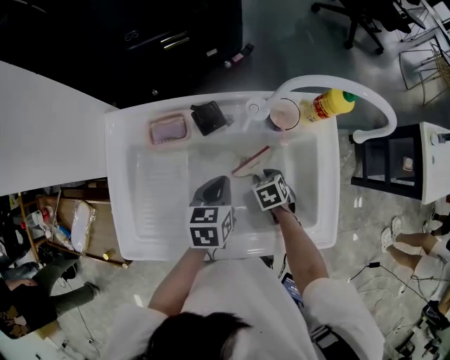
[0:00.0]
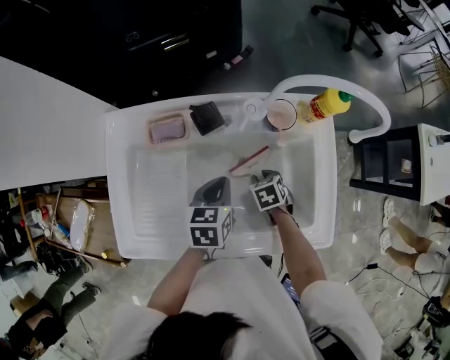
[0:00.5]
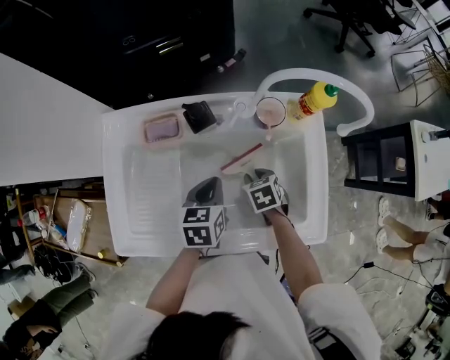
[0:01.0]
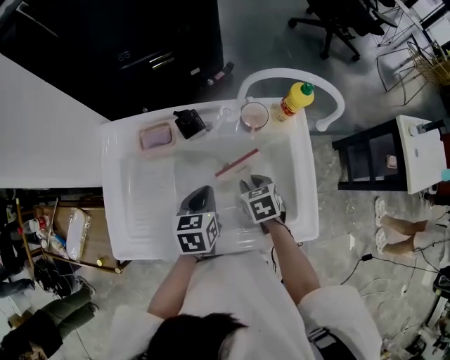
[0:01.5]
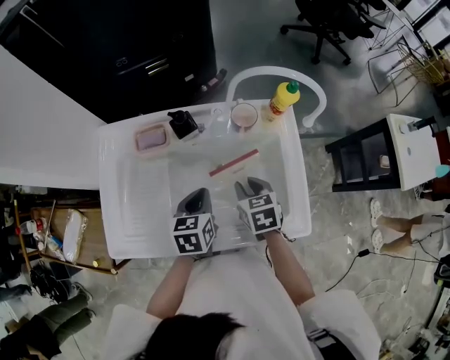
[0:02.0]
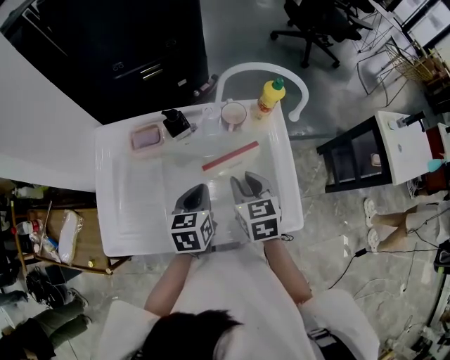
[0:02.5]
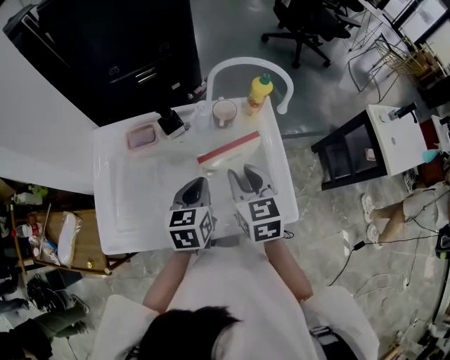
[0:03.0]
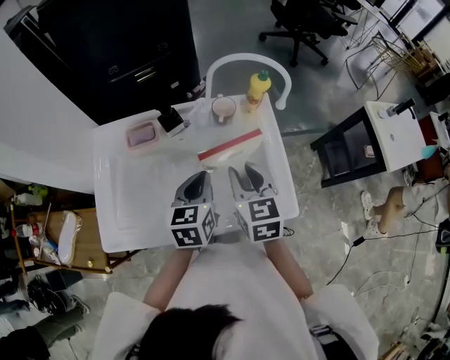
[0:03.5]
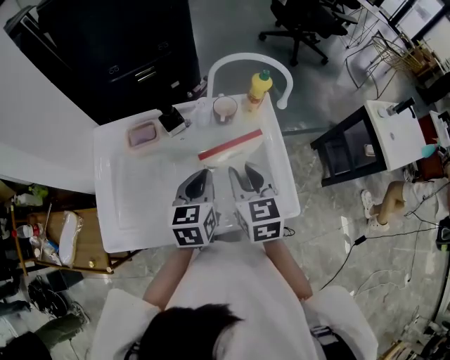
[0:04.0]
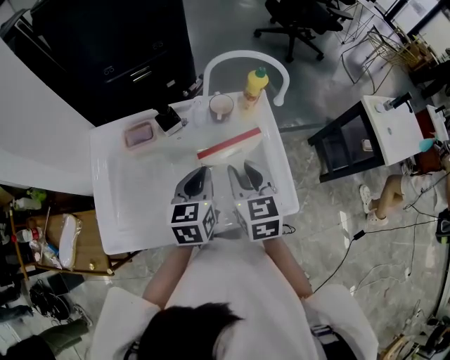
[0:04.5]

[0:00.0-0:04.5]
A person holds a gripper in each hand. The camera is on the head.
0:00.0 to 0:02.0: The right gripper shifts about 15 cm upward, and turns by roughly 20 degrees, while the left gripper changes place by roughly 5 cm.
0:02.0 to 0:04.5: The right gripper heads upward, covering approximately 15 cm, and changes its angle by approximately 20 degrees; the left gripper travels upward by some 10 cm.

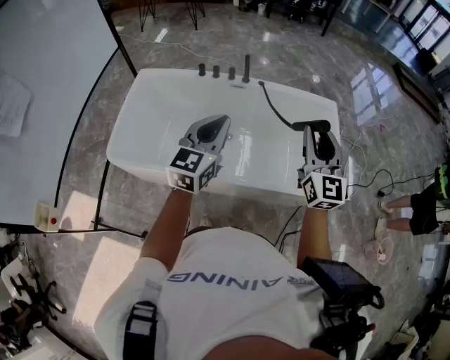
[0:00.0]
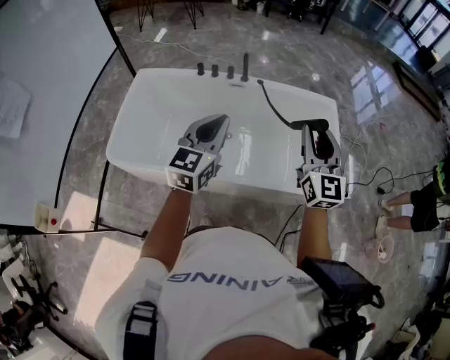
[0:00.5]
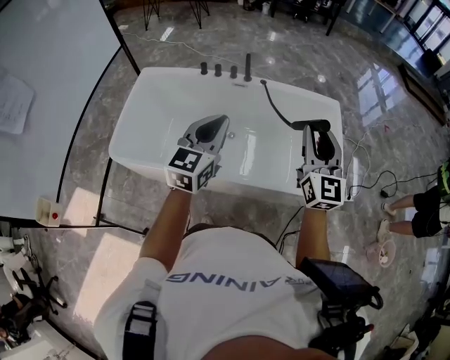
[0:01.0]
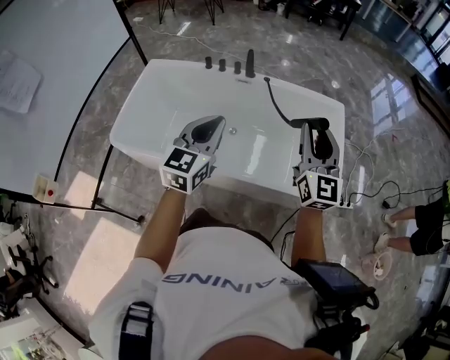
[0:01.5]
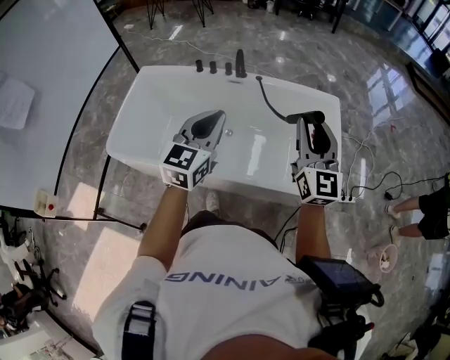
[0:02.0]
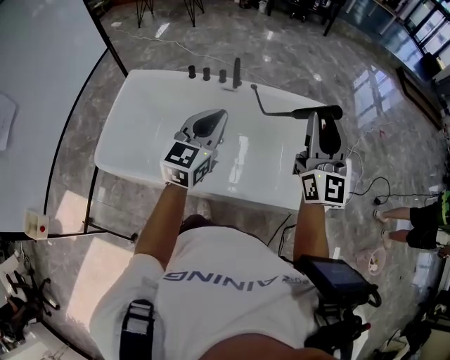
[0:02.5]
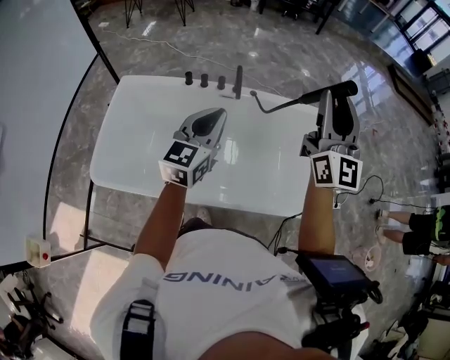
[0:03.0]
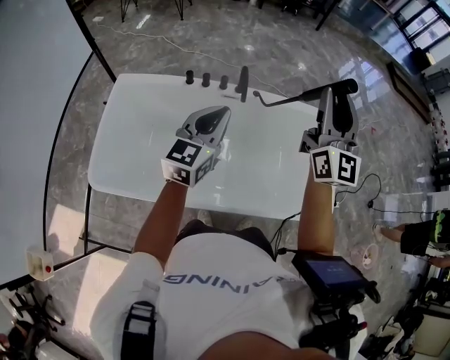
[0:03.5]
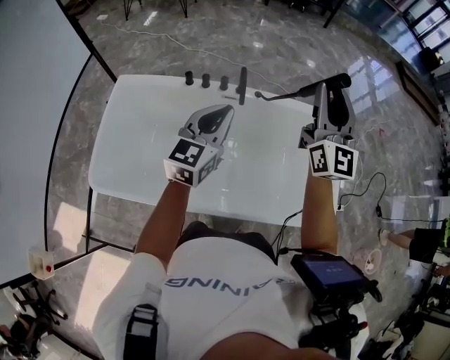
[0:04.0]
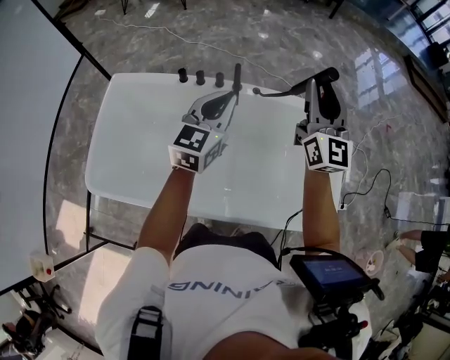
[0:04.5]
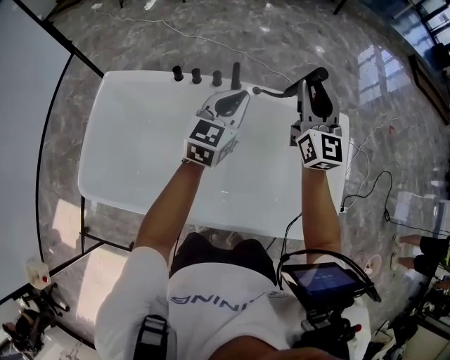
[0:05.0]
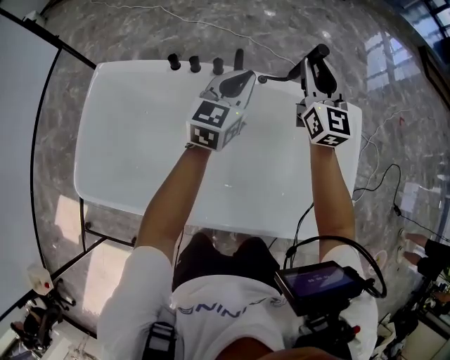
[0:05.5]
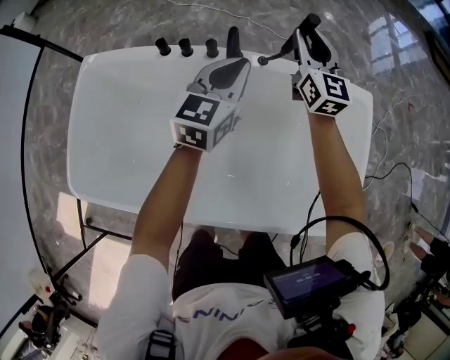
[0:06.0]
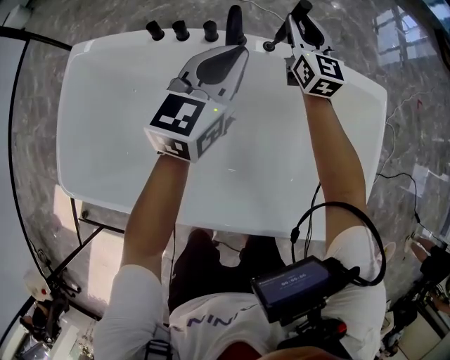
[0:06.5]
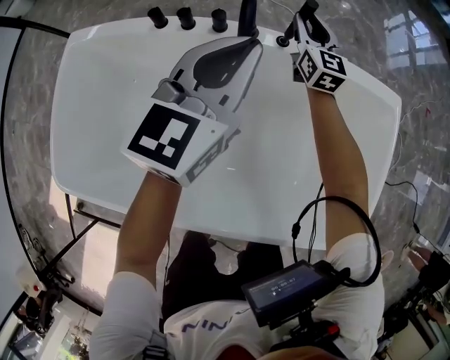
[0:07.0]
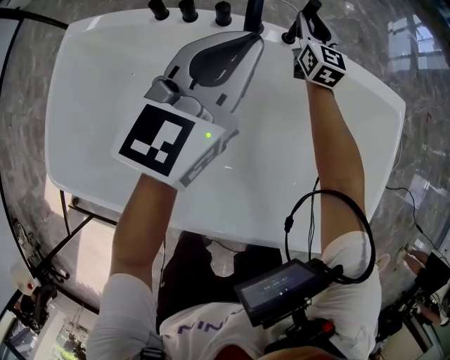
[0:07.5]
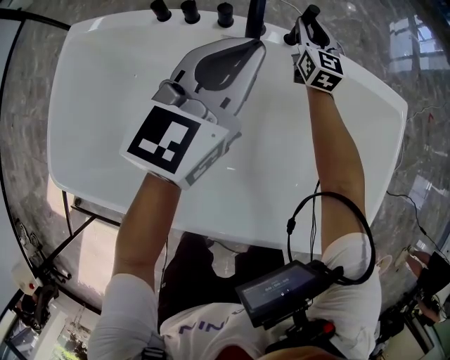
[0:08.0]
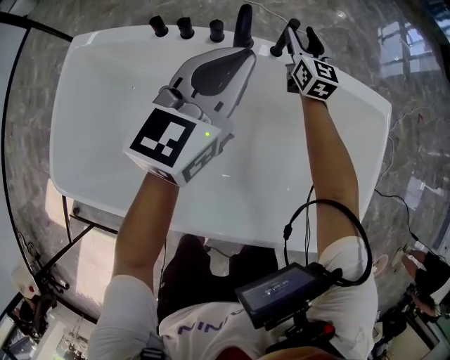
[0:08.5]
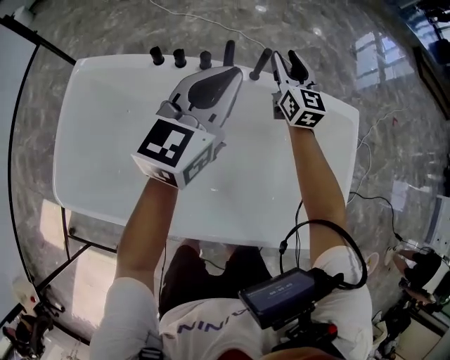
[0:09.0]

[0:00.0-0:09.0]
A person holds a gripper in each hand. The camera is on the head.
0:00.0 to 0:02.0: The grippers both shift to the right by approximately 10 cm.
0:02.0 to 0:04.5: Both grippers move forward, about 35 cm.
0:04.5 to 0:07.0: The right gripper travels downward and forward by some 50 cm, and swivels some 20 degrees; the left gripper travels downward and forward by approximately 25 cm.
0:07.0 to 0:09.0: The right gripper heads upward and backward, covering some 15 cm, while the left gripper moves upward, roughly 10 cm.

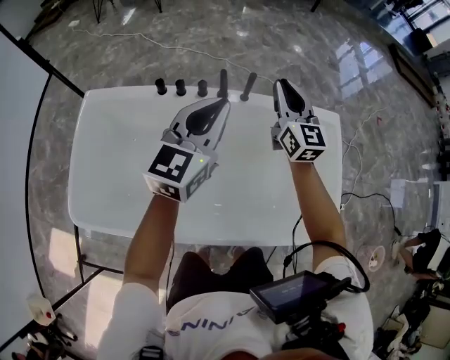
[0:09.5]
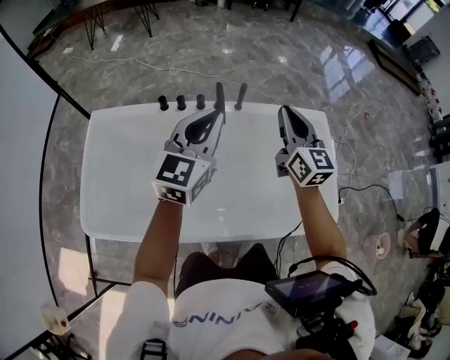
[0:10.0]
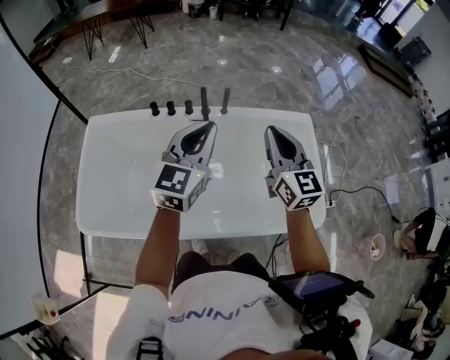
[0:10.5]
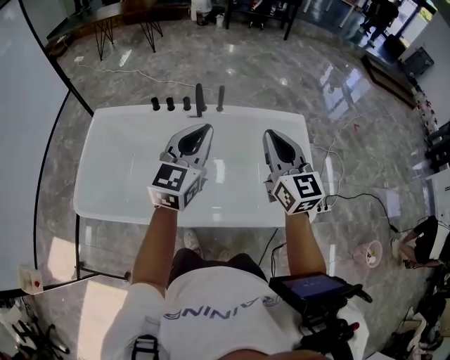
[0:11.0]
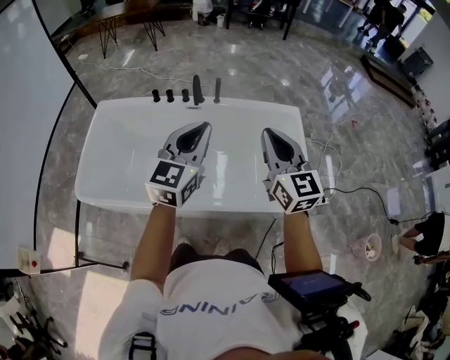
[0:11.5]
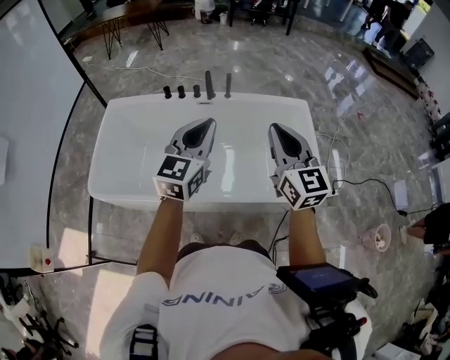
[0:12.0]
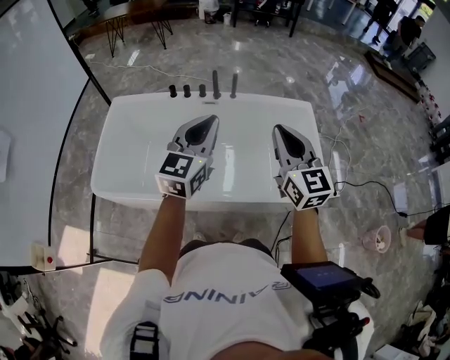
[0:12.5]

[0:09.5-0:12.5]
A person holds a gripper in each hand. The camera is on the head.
0:09.5 to 0:11.0: The left gripper travels backward, to the right and upward by roughly 25 cm. The right gripper shifts roughly 35 cm backward and upward.
0:11.0 to 0:12.5: Both grippers travel together backward, approximately 15 cm.

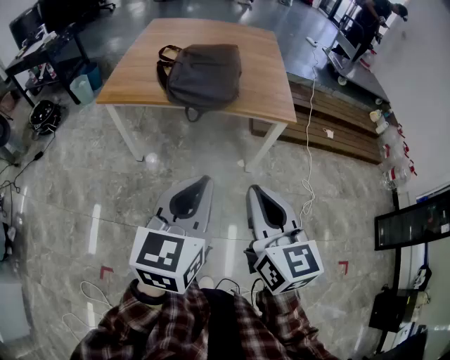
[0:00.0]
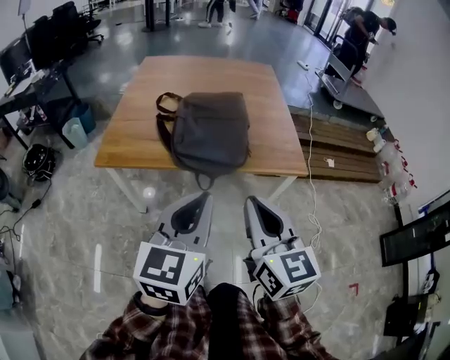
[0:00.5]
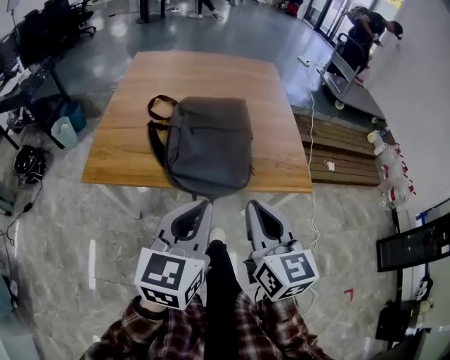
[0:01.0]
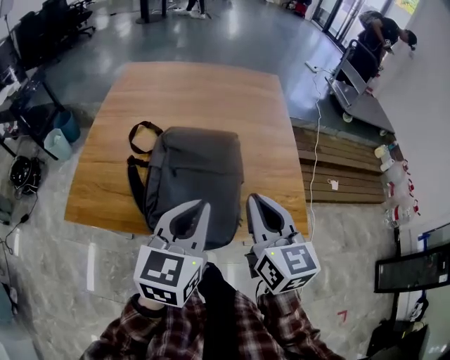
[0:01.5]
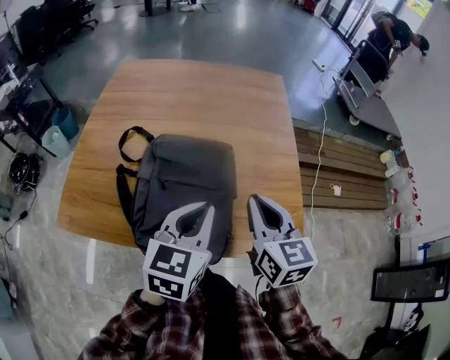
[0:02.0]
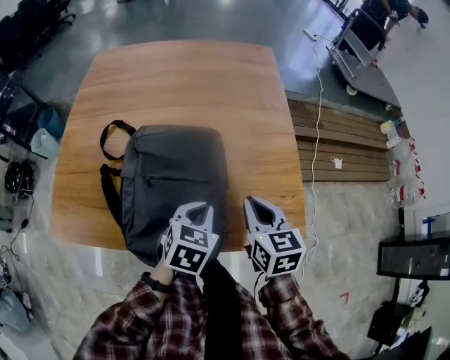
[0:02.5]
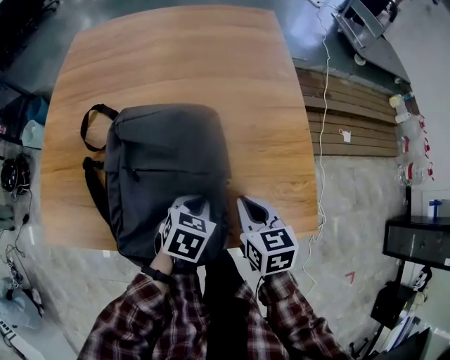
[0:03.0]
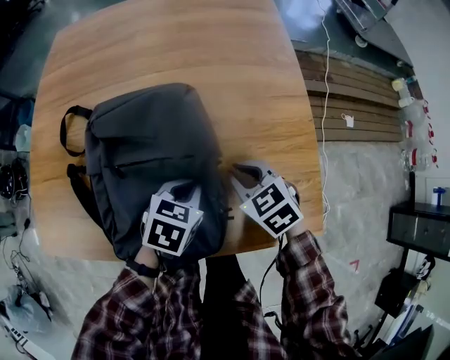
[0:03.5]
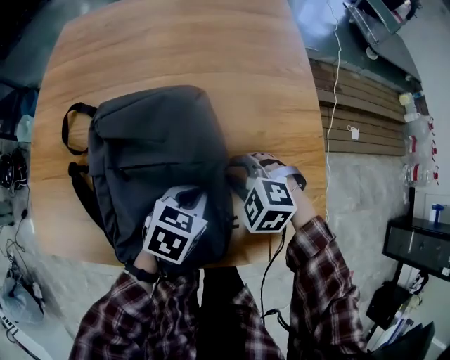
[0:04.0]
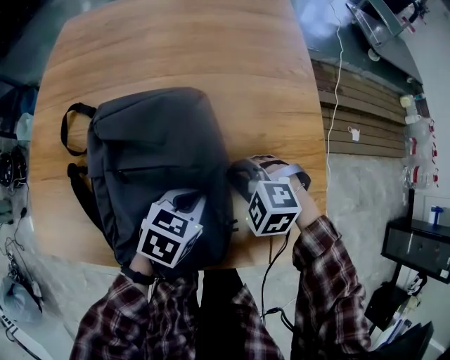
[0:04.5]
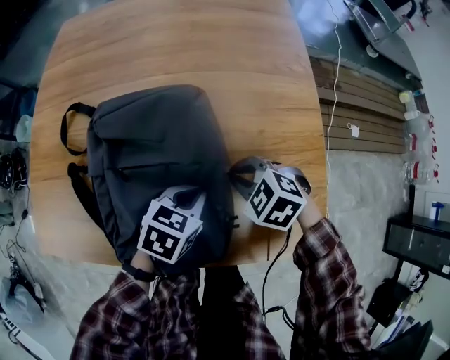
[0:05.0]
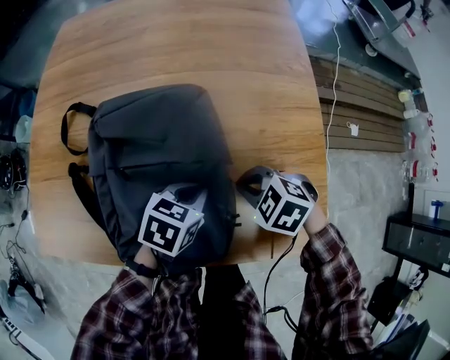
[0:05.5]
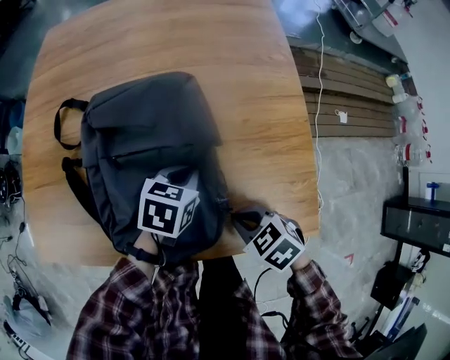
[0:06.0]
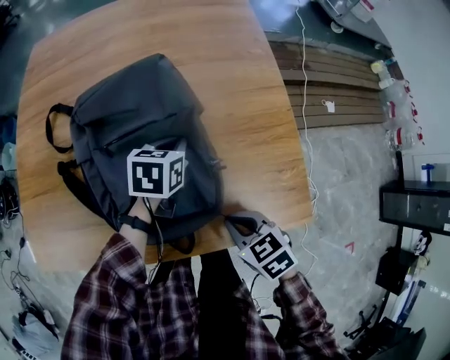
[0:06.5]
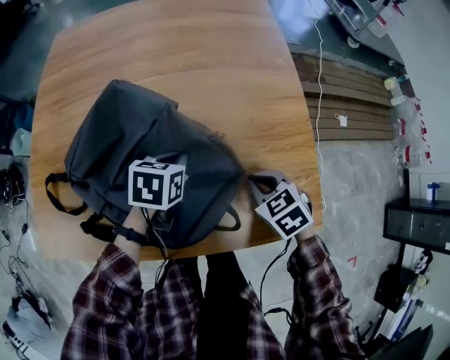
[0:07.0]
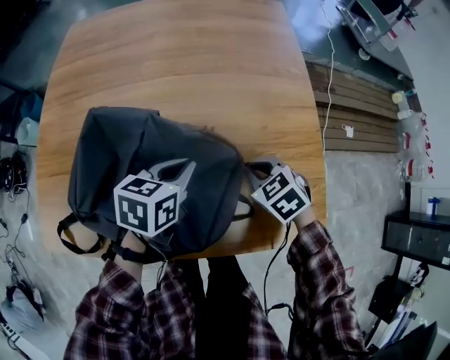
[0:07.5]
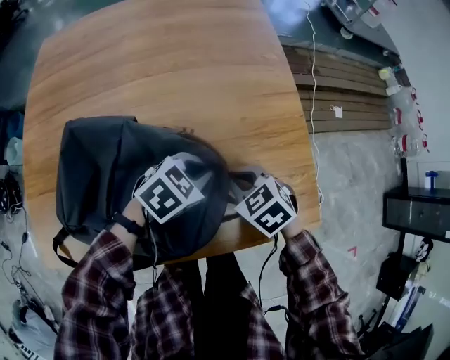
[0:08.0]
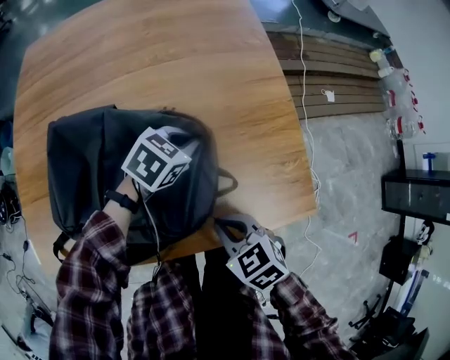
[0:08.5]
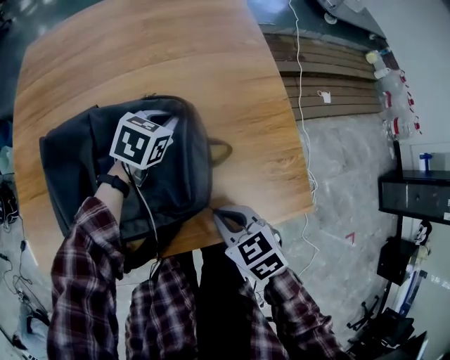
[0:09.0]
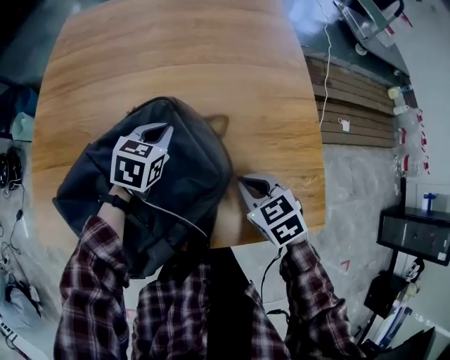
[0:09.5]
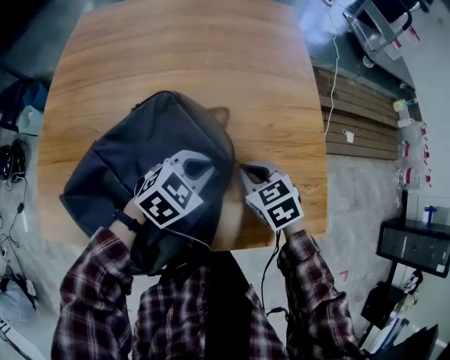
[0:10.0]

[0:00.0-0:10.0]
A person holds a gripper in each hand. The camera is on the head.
0:00.0 to 0:02.0: Both grippers are carried forward, some 60 cm.
0:02.0 to 0:04.0: Both grippers move downward and forward, some 25 cm. The right gripper tips its fingers downward by roughly 40 degrees, while the left gripper tilts its fingers some 30 degrees downward.
0:04.0 to 0:06.0: The right gripper shifts by some 15 cm, and rotates around the line of its fingers by roughly 40 degrees, clockwise from behind.
0:06.0 to 0:08.0: The left gripper turns by roughly 40 degrees; the right gripper moves about 10 cm.
0:08.0 to 0:10.0: The left gripper shifts about 5 cm to the left; the right gripper goes backward and returns, about 15 cm each way.
